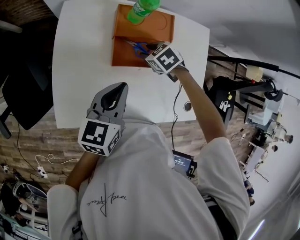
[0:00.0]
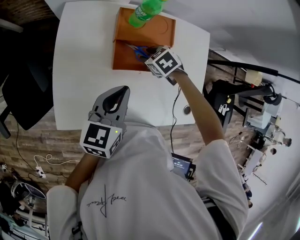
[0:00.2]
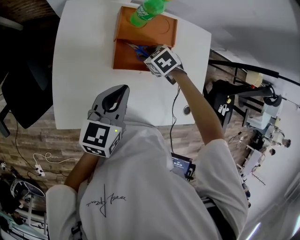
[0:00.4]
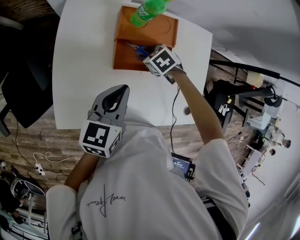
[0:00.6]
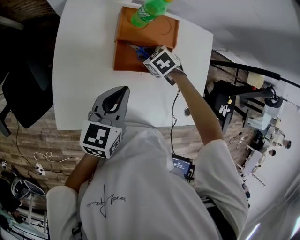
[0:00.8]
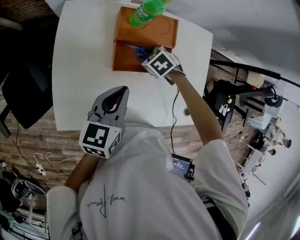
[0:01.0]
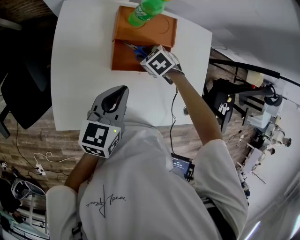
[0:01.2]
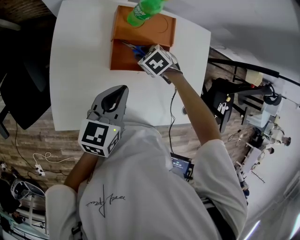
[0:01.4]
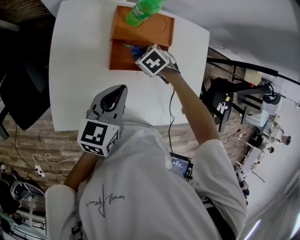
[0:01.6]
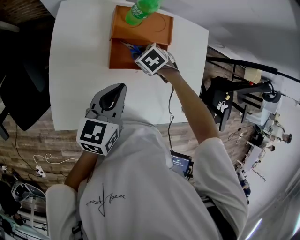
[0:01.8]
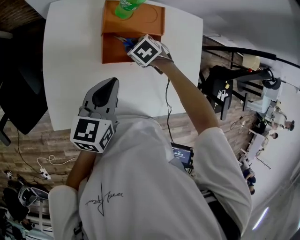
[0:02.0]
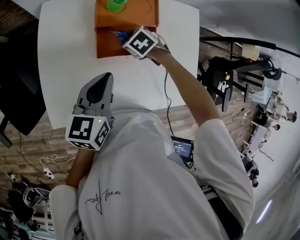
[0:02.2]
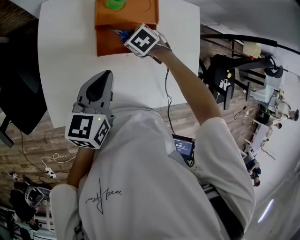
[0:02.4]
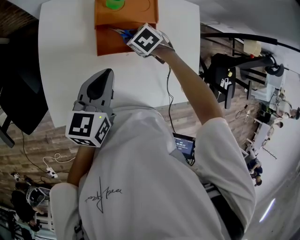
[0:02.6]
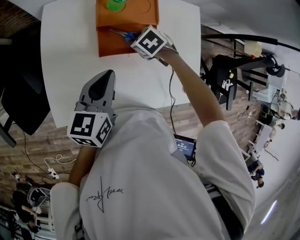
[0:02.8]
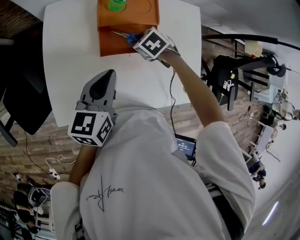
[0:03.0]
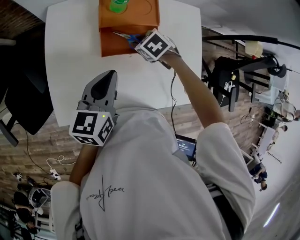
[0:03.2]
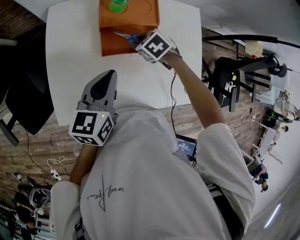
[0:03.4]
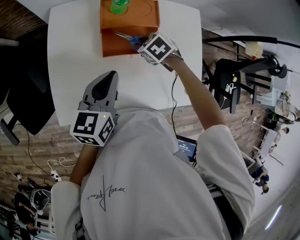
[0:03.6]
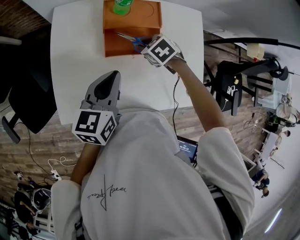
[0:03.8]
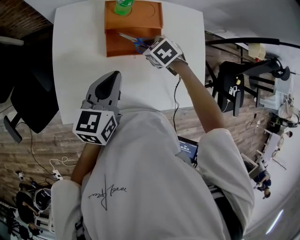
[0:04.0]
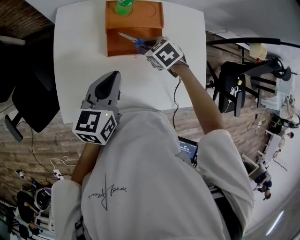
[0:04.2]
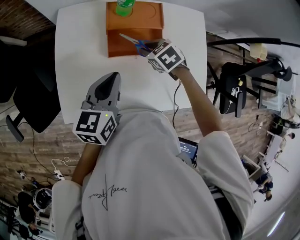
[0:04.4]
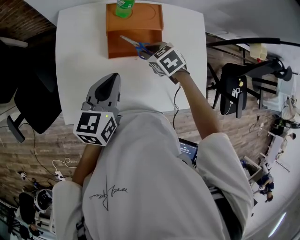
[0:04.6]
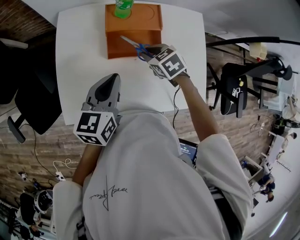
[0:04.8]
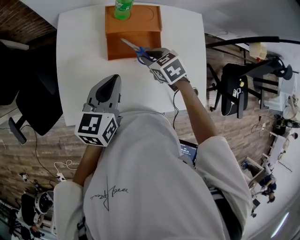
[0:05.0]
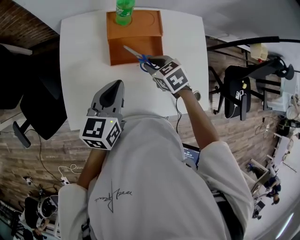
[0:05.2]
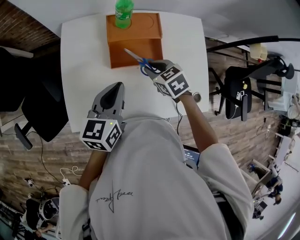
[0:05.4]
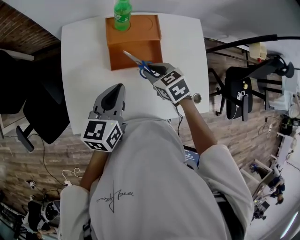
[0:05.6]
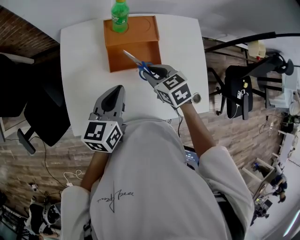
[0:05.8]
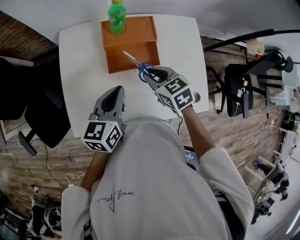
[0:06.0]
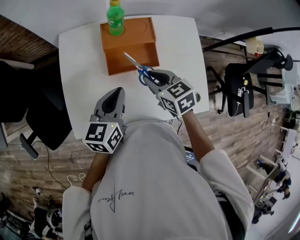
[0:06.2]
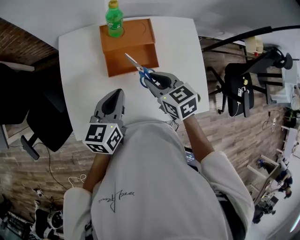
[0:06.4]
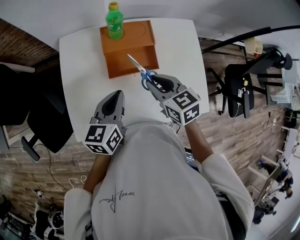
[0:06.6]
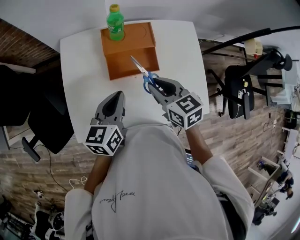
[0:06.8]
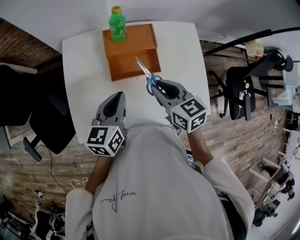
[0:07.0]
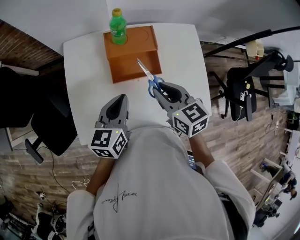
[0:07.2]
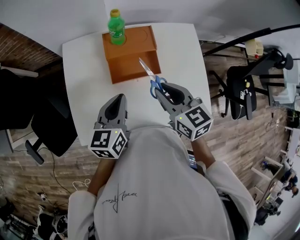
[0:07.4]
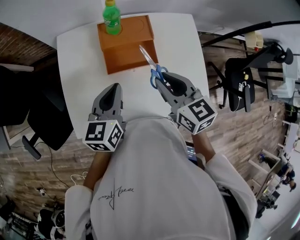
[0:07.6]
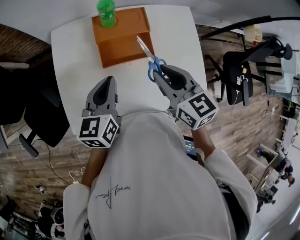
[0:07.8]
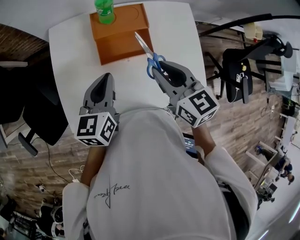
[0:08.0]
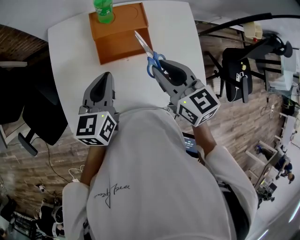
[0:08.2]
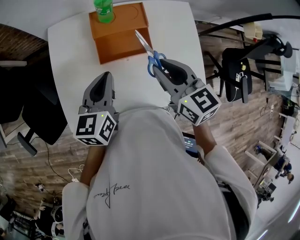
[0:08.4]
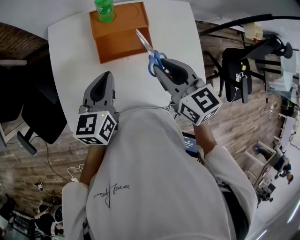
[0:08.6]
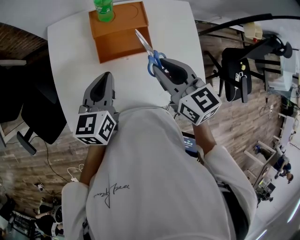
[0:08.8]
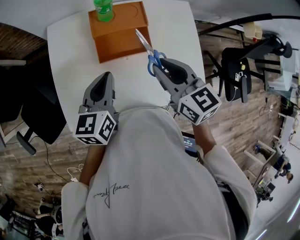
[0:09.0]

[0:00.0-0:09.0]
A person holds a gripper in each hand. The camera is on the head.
0:00.0 to 0:03.0: The grippers move only a little.
0:03.0 to 0:04.4: The right gripper ends up approximately 5 cm from where it was.
0:04.4 to 0:06.0: The right gripper shifts some 10 cm upward and backward, and swivels about 20 degrees.
0:06.0 to 0:07.6: The right gripper travels upward by about 10 cm, and swivels about 20 degrees.
0:07.6 to 0:09.0: Both grippers stay put.

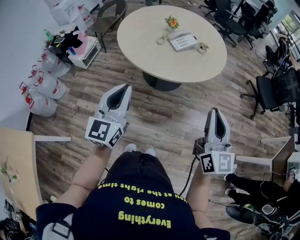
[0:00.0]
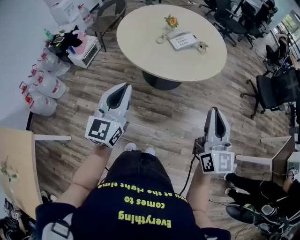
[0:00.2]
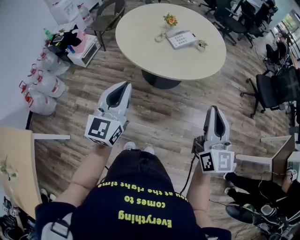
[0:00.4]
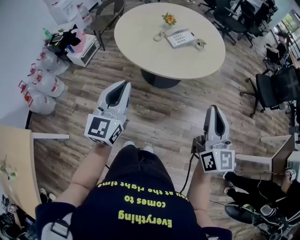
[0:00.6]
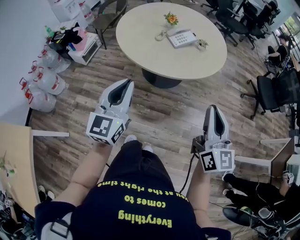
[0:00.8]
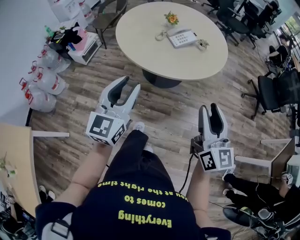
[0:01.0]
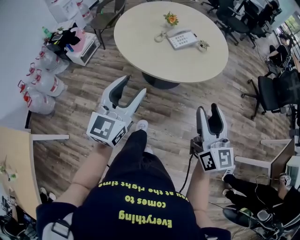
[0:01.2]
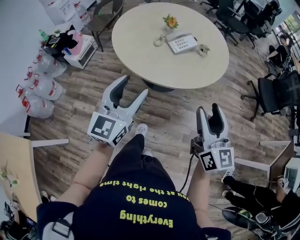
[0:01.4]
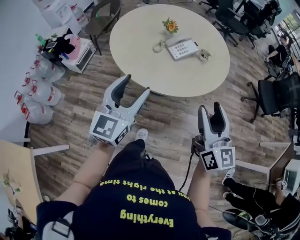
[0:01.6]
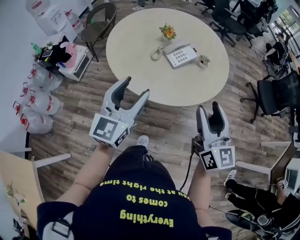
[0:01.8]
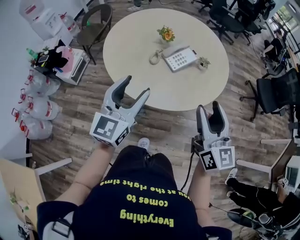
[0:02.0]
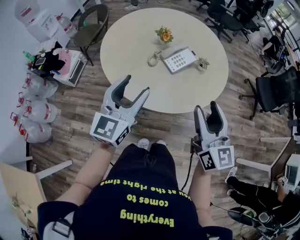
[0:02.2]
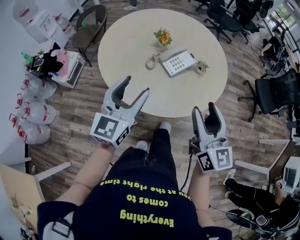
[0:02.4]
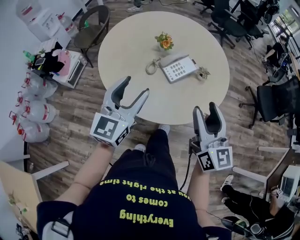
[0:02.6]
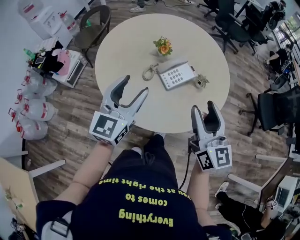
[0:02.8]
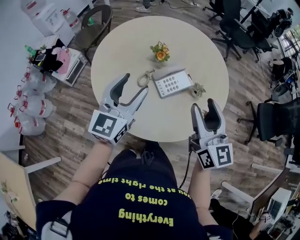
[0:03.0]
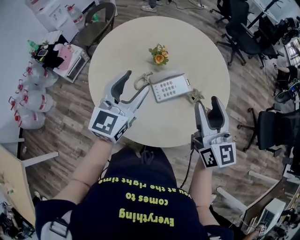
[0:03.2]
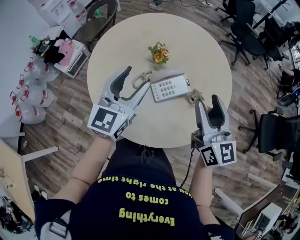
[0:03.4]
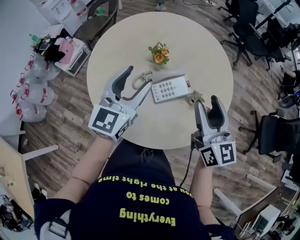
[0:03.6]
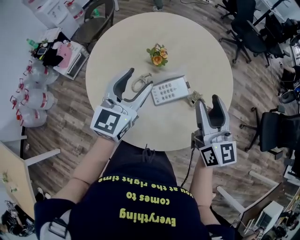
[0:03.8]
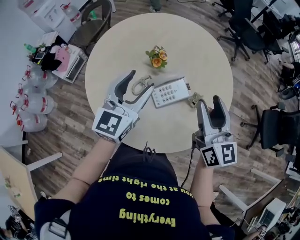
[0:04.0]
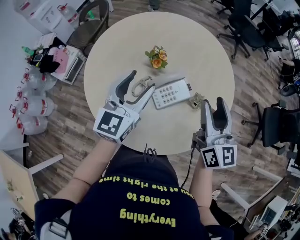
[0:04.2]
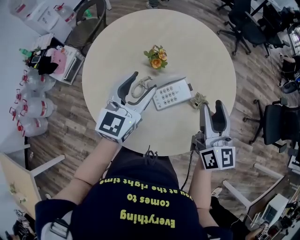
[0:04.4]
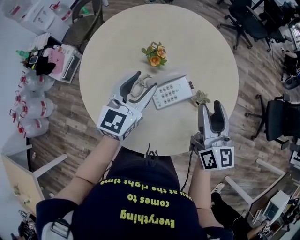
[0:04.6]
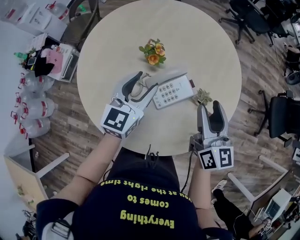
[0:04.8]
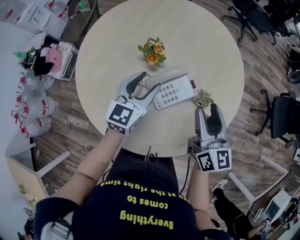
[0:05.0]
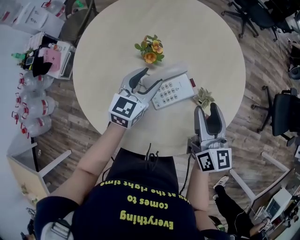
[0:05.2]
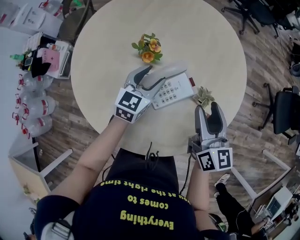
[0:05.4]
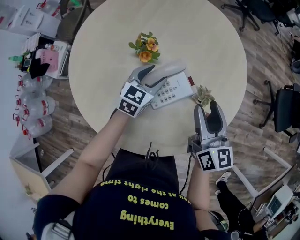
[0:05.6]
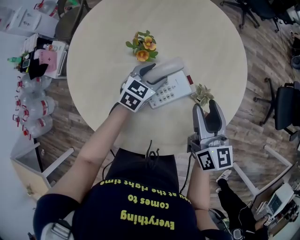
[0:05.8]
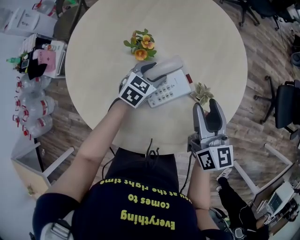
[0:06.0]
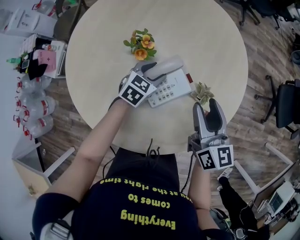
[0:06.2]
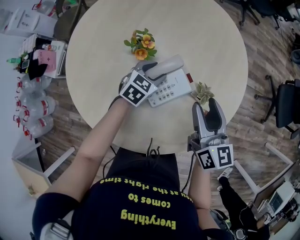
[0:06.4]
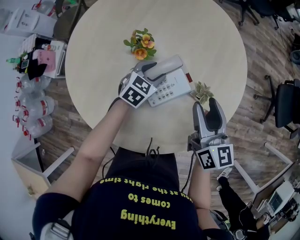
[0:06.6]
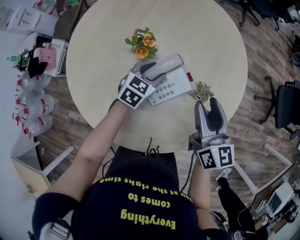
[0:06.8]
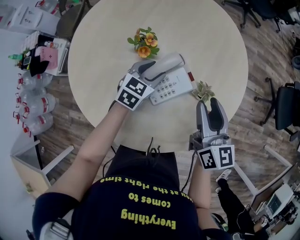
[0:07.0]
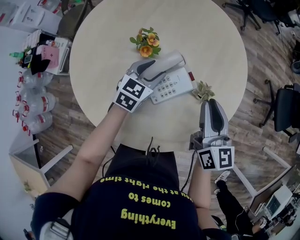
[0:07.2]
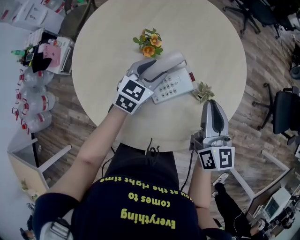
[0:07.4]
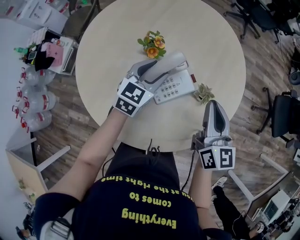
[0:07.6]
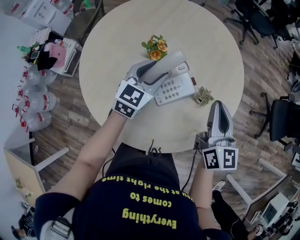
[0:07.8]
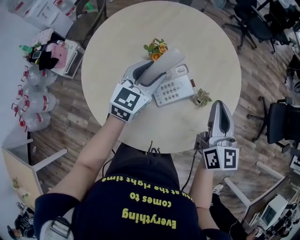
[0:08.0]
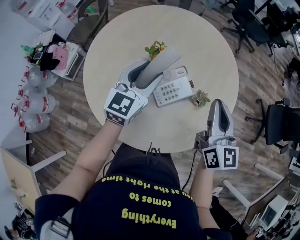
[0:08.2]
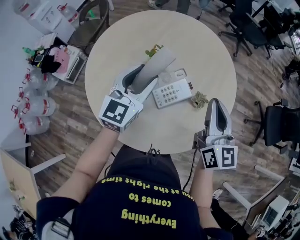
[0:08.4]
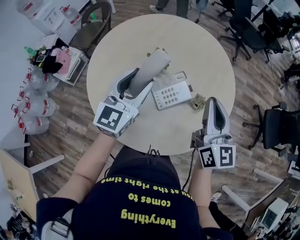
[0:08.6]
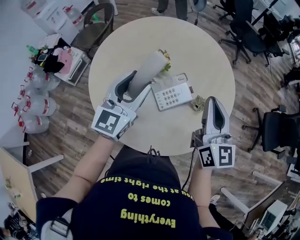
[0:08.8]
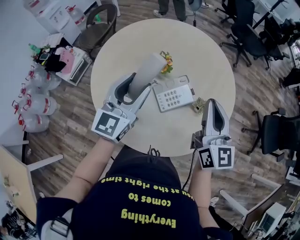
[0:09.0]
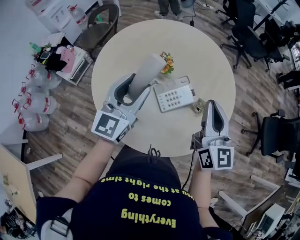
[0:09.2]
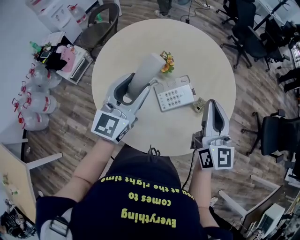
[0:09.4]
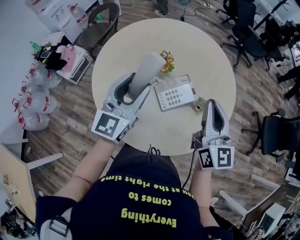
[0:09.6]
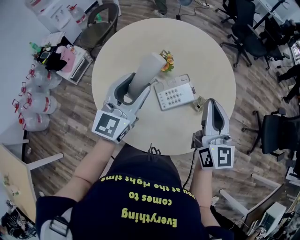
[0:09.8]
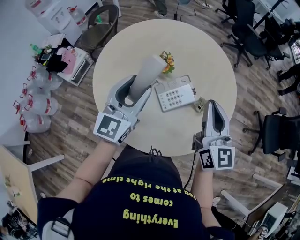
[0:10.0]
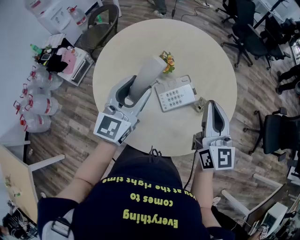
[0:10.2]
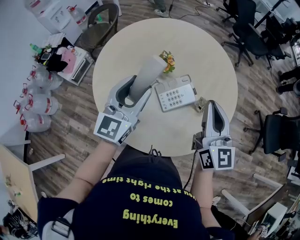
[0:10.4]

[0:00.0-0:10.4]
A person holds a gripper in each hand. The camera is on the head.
0:00.0 to 0:01.4: The grippers both shift forward by some 10 cm. The right gripper opens up; the left gripper opens.
0:01.4 to 0:03.0: The two grippers go about 35 cm forward.
0:03.0 to 0:04.4: The right gripper travels forward and to the right by approximately 15 cm. The left gripper moves forward, roughly 15 cm.
0:04.4 to 0:06.0: The right gripper is displaced downward by about 10 cm, while the left gripper travels downward and forward by roughly 30 cm, and tilts its fingers approximately 30 degrees downward.
0:06.0 to 0:07.4: The left gripper moves upward, approximately 10 cm. Meanwhile the right gripper closes up.
0:07.4 to 0:09.0: The right gripper moves upward, some 15 cm. Meanwhile the left gripper is displaced upward, backward and to the left by some 25 cm, and points its fingers approximately 30 degrees further upward.
0:09.0 to 0:10.4: The grippers make only small movements.

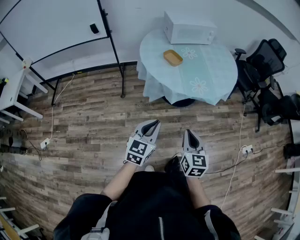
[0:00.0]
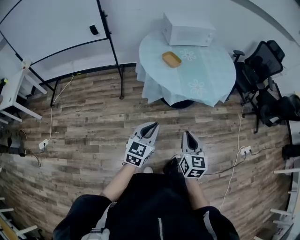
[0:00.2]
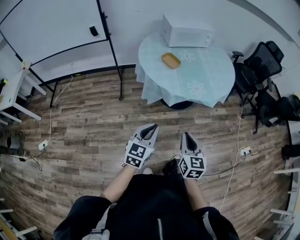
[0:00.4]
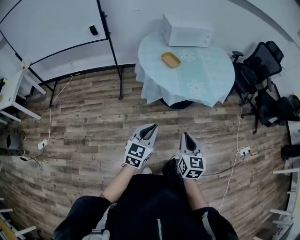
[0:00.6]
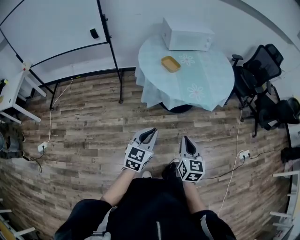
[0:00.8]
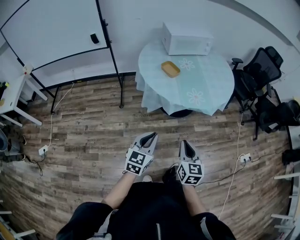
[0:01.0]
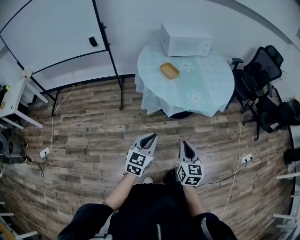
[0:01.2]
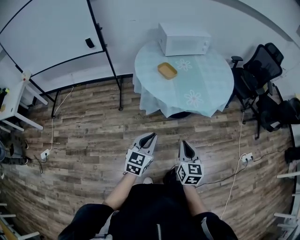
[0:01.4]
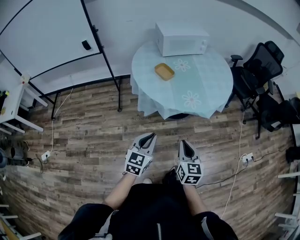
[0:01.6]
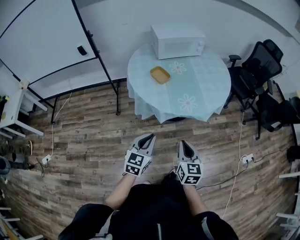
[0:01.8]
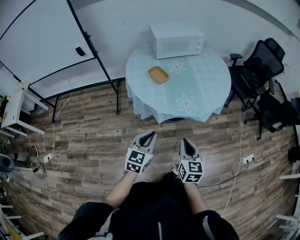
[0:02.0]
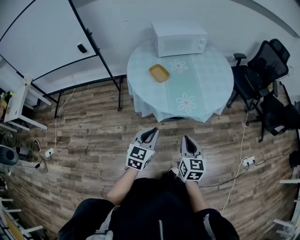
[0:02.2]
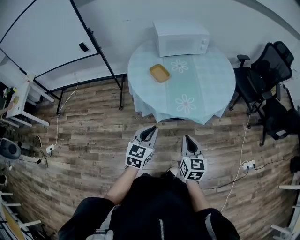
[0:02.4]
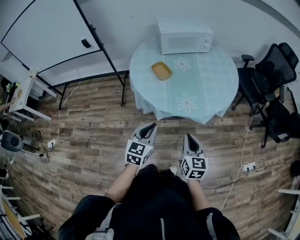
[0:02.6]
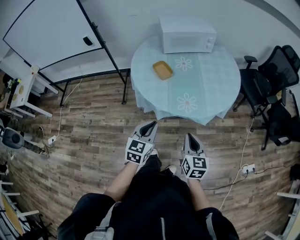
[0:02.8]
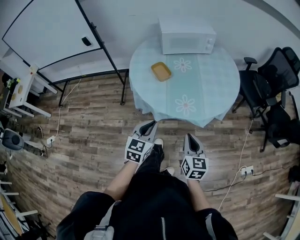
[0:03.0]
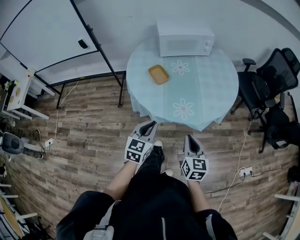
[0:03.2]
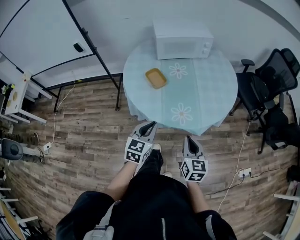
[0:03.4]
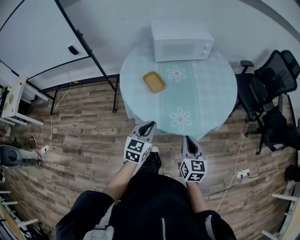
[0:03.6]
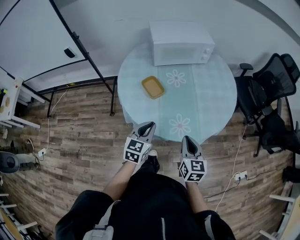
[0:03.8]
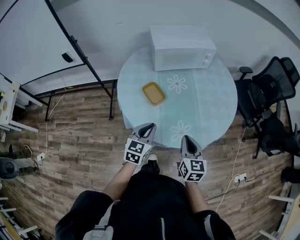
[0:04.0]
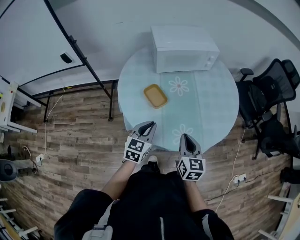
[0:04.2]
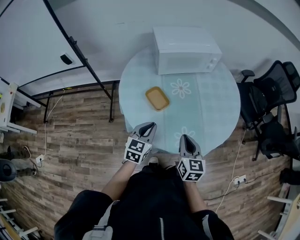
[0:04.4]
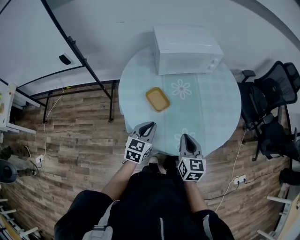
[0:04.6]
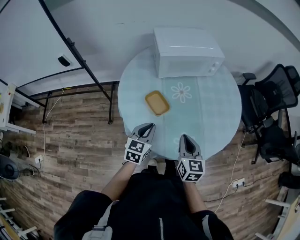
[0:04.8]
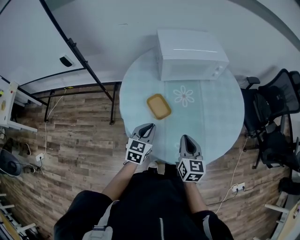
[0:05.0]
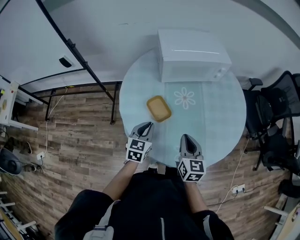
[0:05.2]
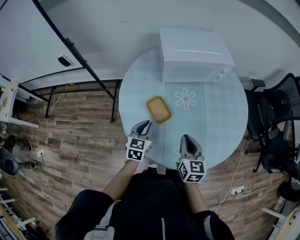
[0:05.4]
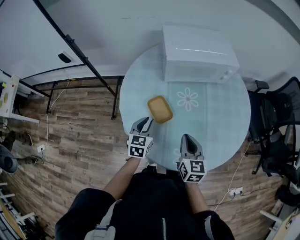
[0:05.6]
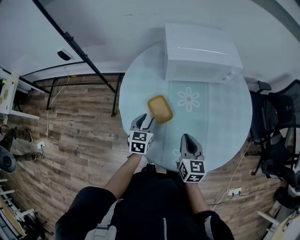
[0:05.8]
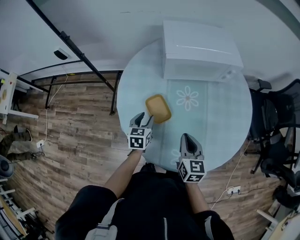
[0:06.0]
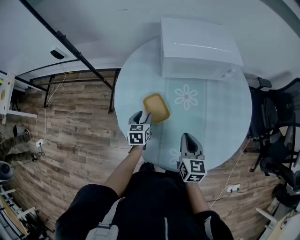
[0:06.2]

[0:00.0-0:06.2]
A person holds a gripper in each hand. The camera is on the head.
0:00.0 to 0:01.6: Both grippers travel together forward, roughly 5 cm.
0:01.6 to 0:03.2: Both grippers travel together forward and to the right, approximately 20 cm.
0:03.2 to 0:04.6: The left gripper travels forward by about 25 cm; the right gripper goes roughly 25 cm forward and to the left.
0:04.6 to 0:06.2: The right gripper is displaced forward by approximately 15 cm; the left gripper is displaced forward and downward by roughly 20 cm, turns by about 30 degrees, and opens up.
